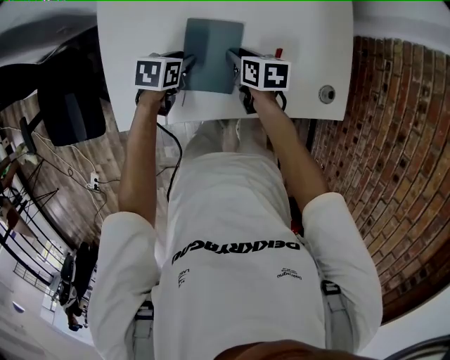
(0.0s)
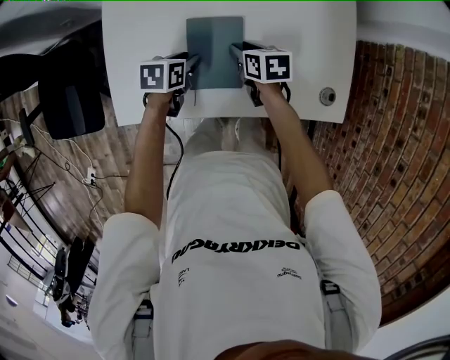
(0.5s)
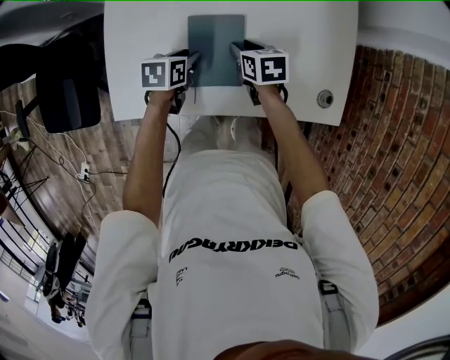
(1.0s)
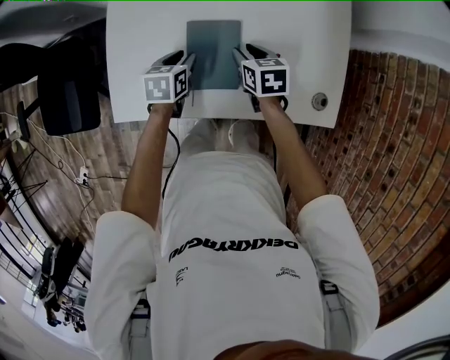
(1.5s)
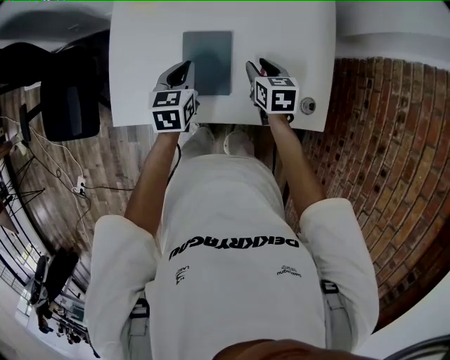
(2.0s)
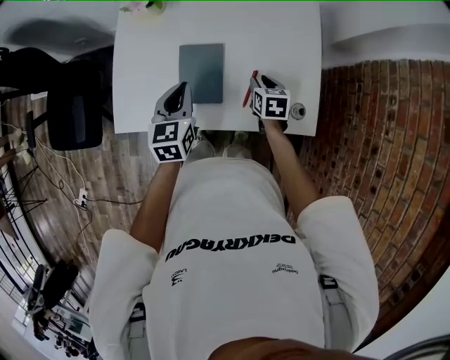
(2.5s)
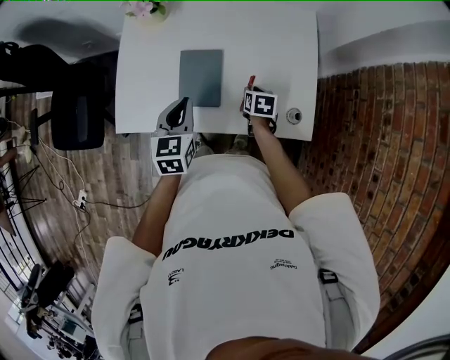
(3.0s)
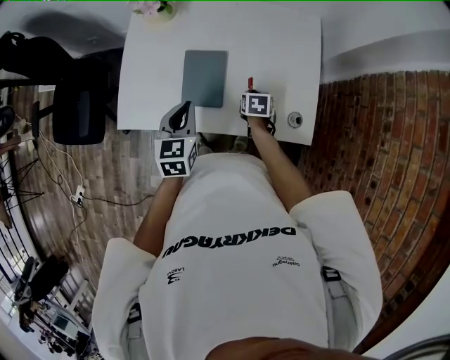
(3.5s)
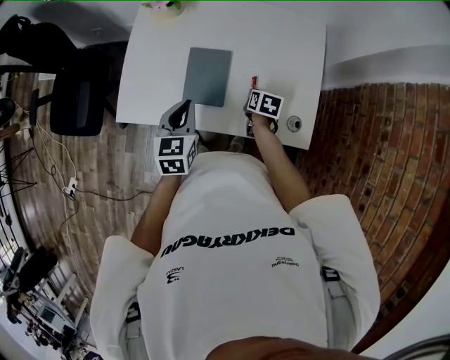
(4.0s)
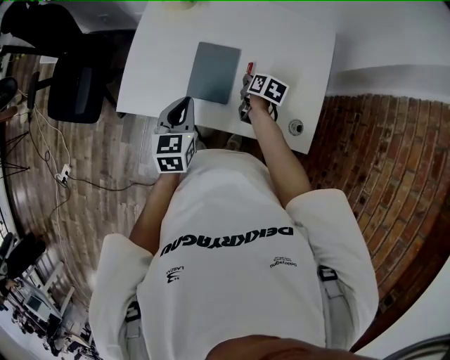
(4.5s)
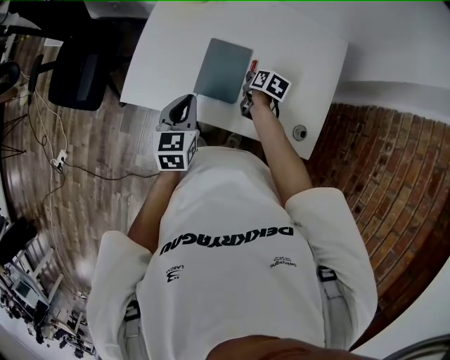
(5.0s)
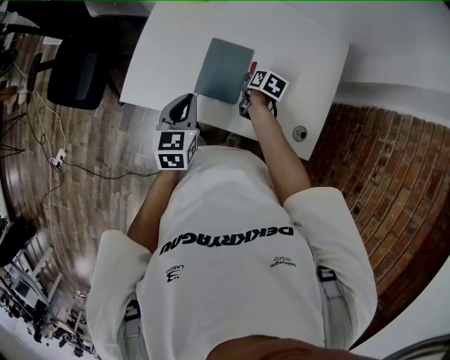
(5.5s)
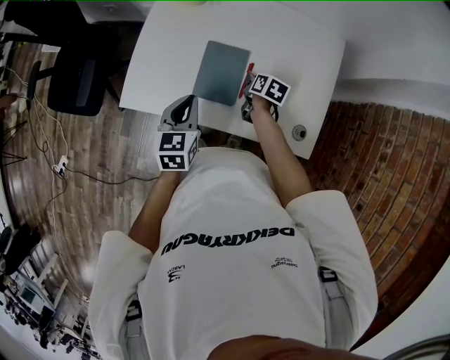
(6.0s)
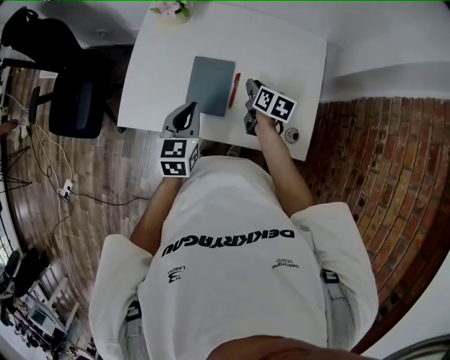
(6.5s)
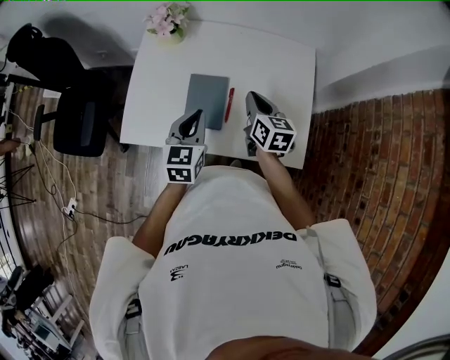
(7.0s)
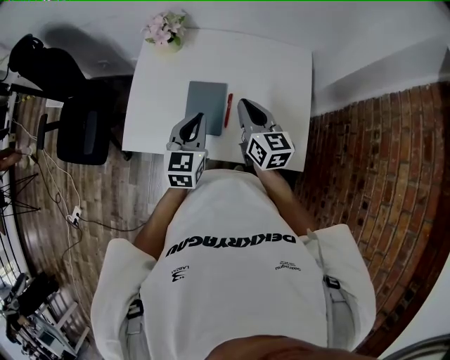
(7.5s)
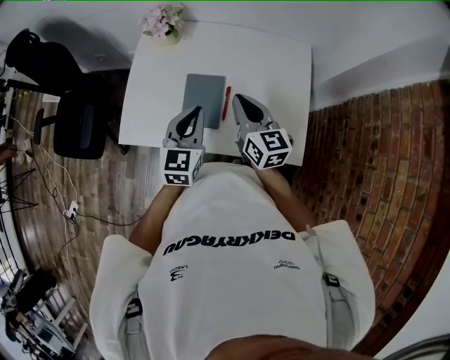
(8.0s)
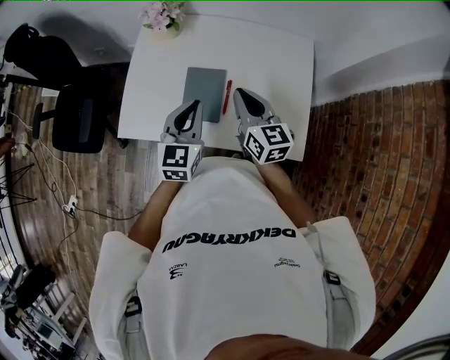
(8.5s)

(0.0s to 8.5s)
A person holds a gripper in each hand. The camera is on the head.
0.0s - 2.0s: The right gripper heads upward and to the right, covering roughly 10 cm, and turns by roughly 20 degrees. The left gripper is displaced upward by approximately 10 cm, changes its angle by roughly 30 degrees, and closes up.
2.0s - 4.0s: The left gripper goes about 15 cm backward and upward. The right gripper is displaced downward by some 5 cm, and closes its fingers.
4.0s - 6.5s: The right gripper is displaced upward and forward by approximately 10 cm.
6.5s - 8.5s: The left gripper moves upward, approximately 5 cm. Meanwhile the right gripper shifts roughly 15 cm upward, and turns by approximately 40 degrees.

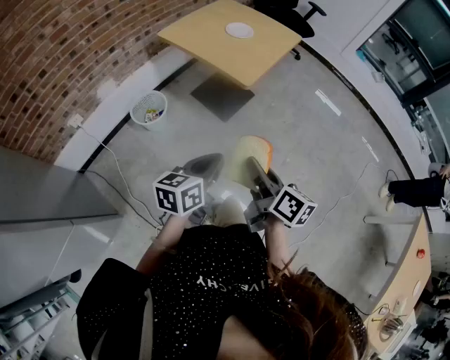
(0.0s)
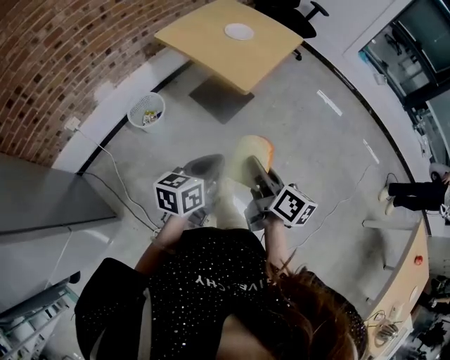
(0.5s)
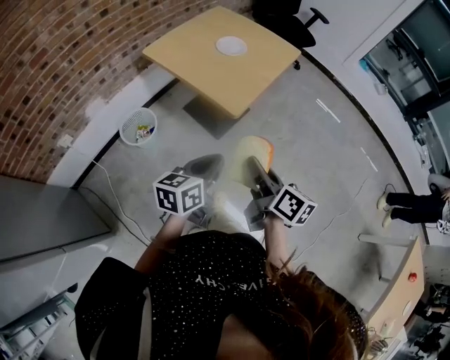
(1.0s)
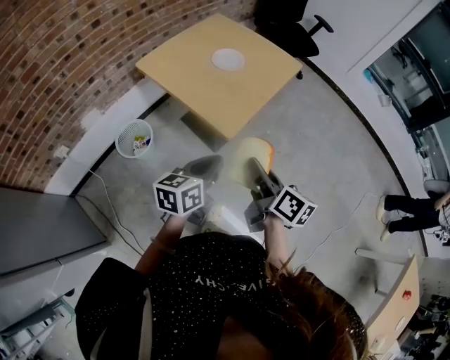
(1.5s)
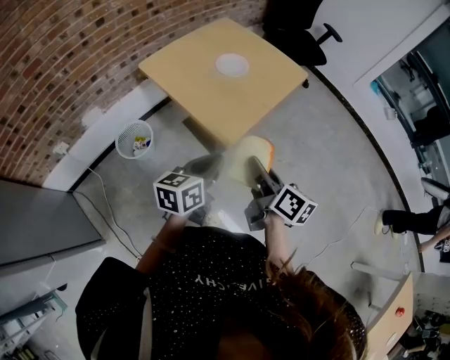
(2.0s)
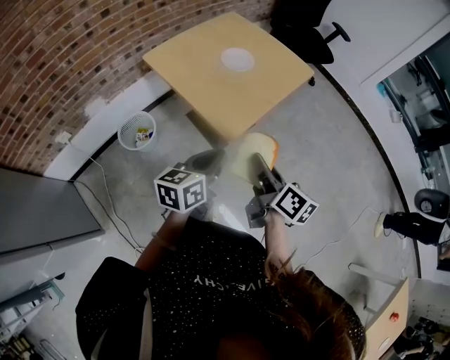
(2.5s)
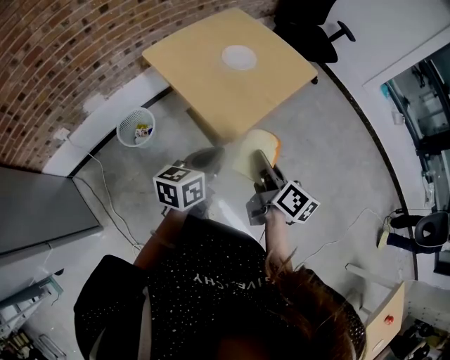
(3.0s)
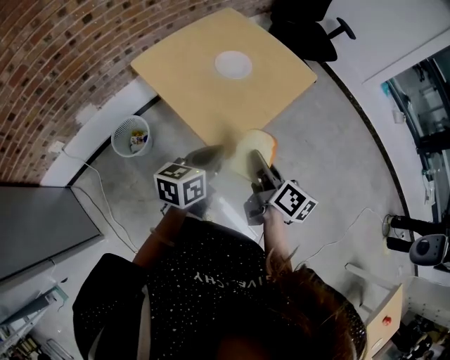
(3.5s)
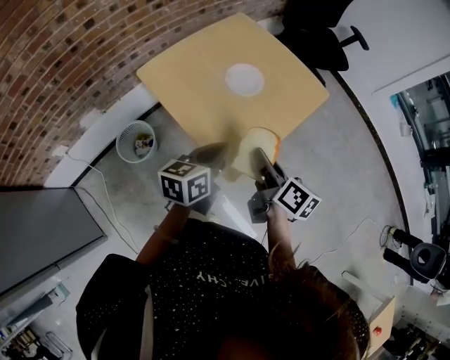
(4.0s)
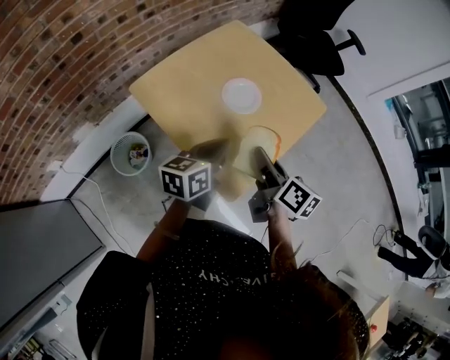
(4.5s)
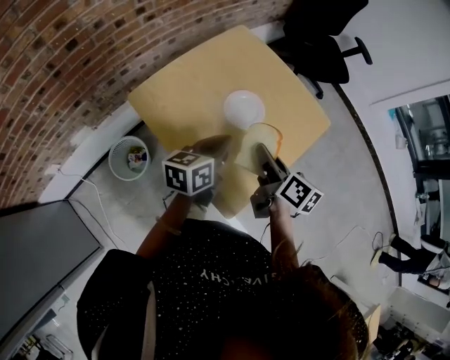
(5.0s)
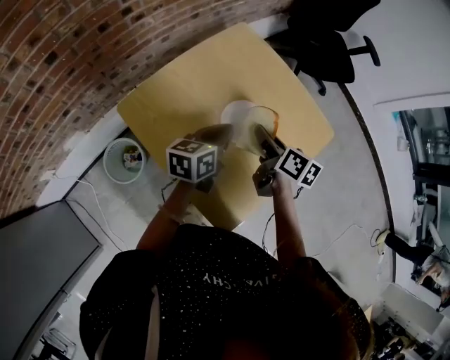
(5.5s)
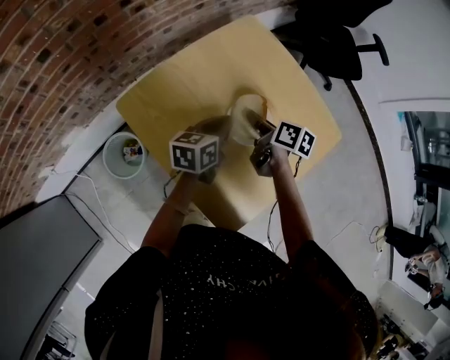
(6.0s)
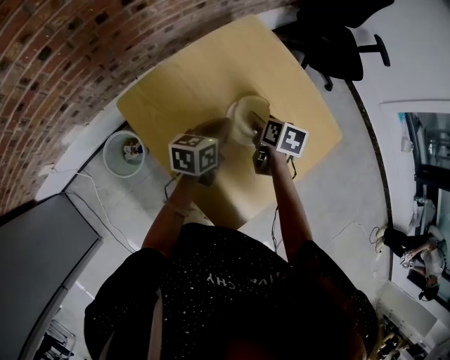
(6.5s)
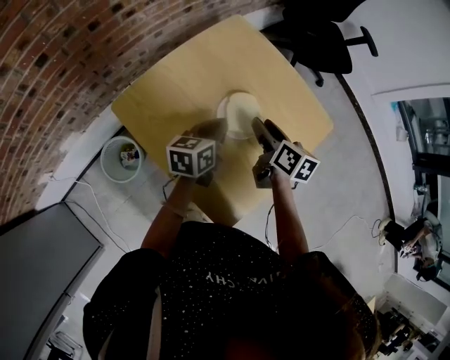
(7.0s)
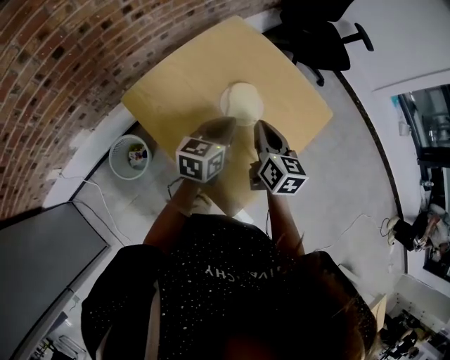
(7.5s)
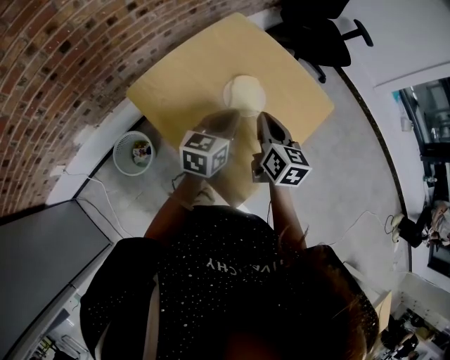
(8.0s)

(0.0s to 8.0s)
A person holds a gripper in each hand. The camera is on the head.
0.0s - 2.0s: The two grippers go some 30 cm forward.
2.0s - 4.0s: Both grippers move forward, approximately 20 cm.
4.0s - 6.0s: The grippers both shift forward by about 30 cm. The right gripper changes its angle by approximately 20 degrees.
6.0s - 8.0s: The grippers both shift backward and upward by about 15 cm. The right gripper swivels approximately 40 degrees, and opens and closes again.

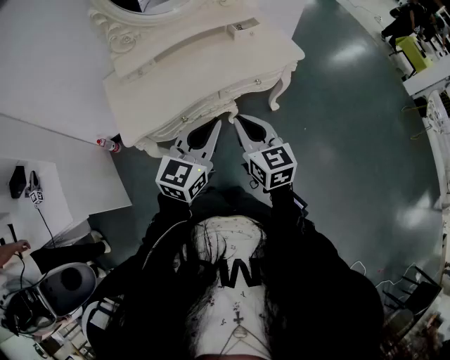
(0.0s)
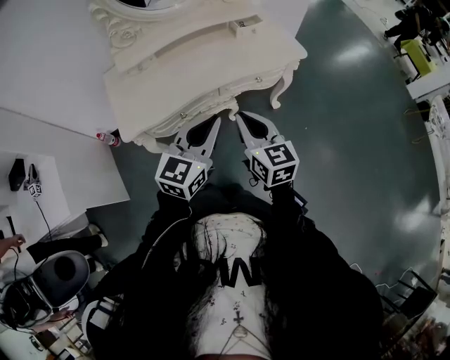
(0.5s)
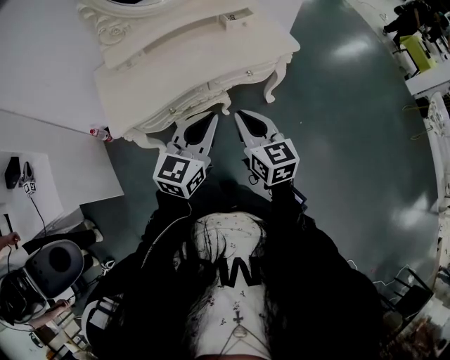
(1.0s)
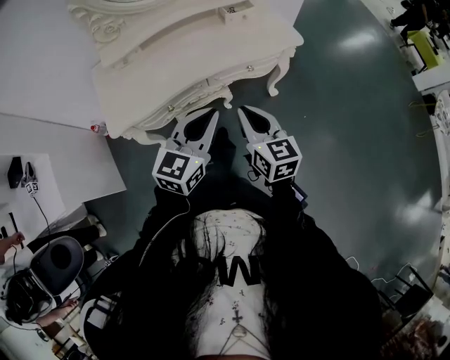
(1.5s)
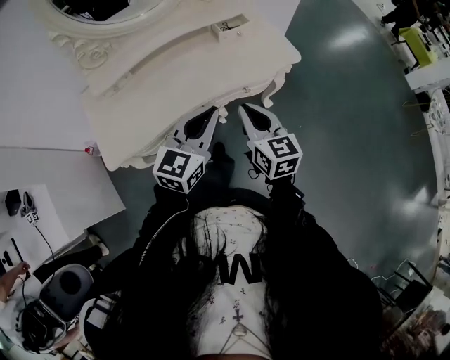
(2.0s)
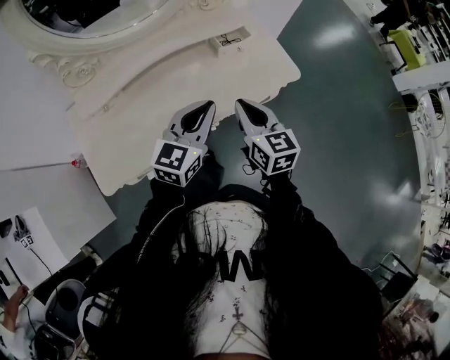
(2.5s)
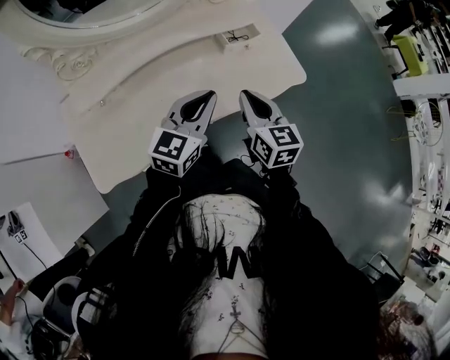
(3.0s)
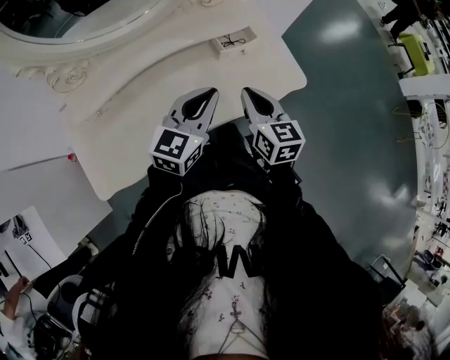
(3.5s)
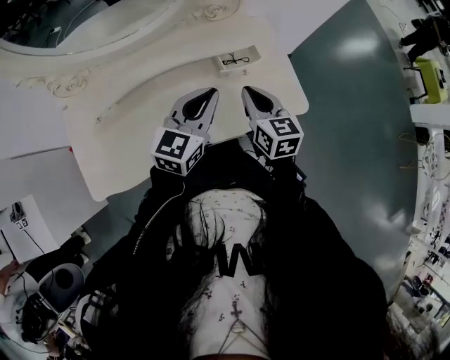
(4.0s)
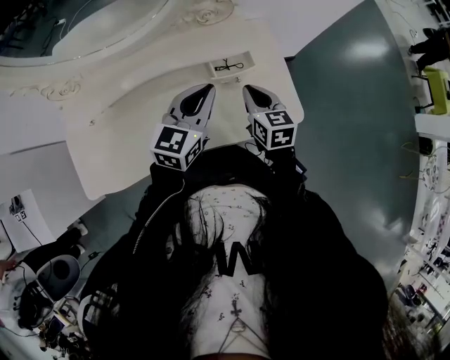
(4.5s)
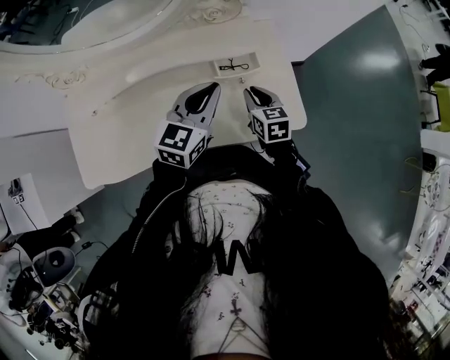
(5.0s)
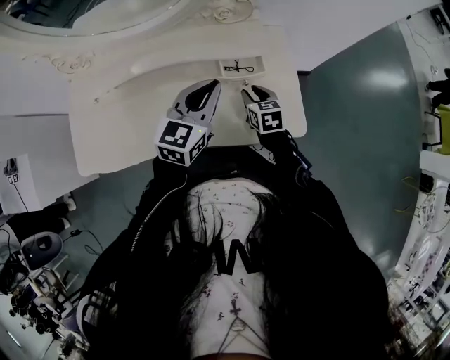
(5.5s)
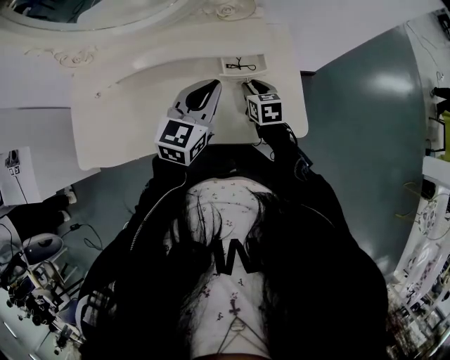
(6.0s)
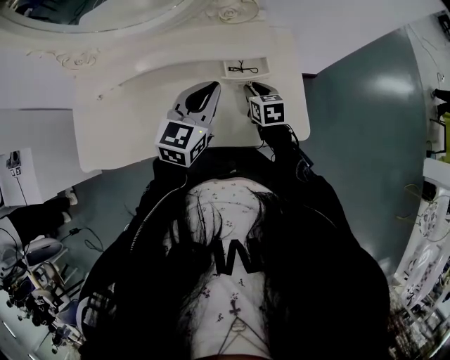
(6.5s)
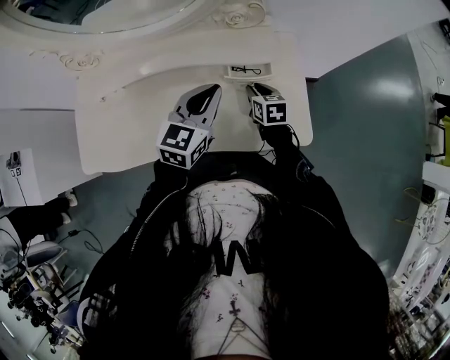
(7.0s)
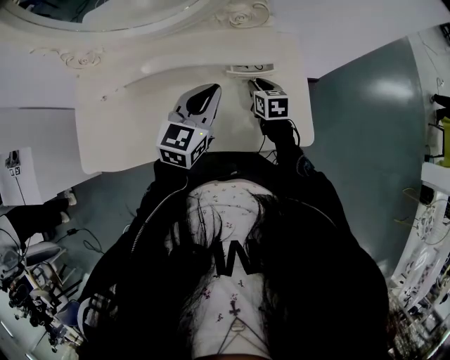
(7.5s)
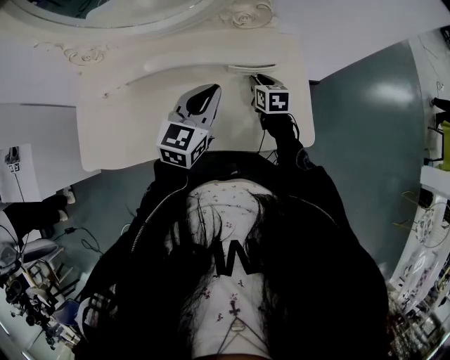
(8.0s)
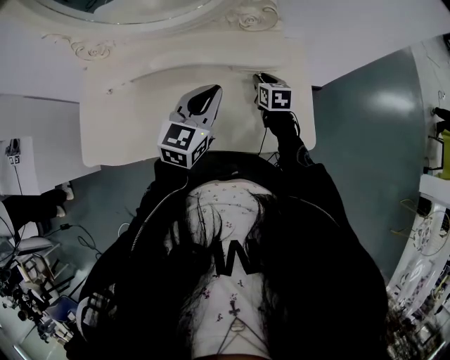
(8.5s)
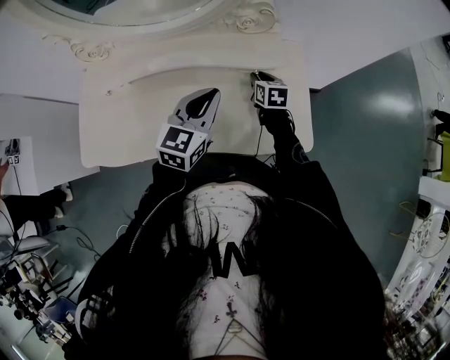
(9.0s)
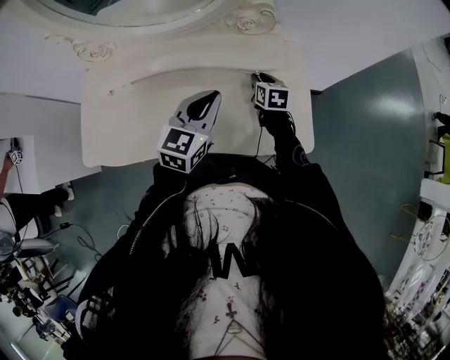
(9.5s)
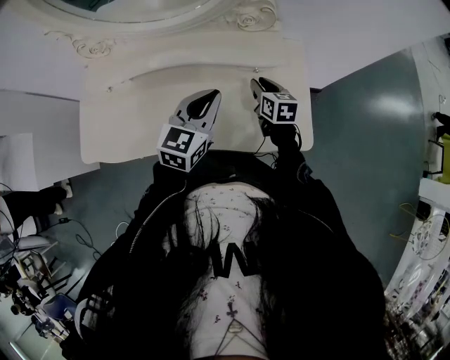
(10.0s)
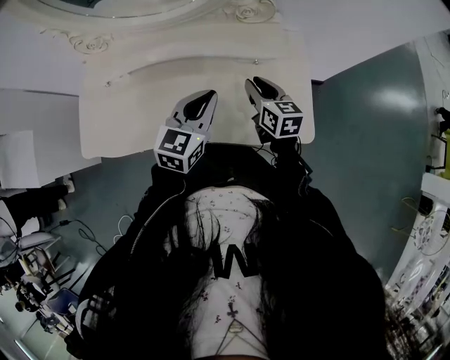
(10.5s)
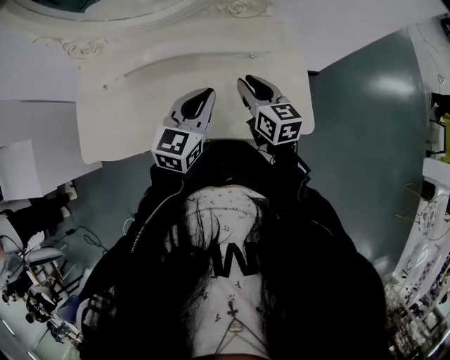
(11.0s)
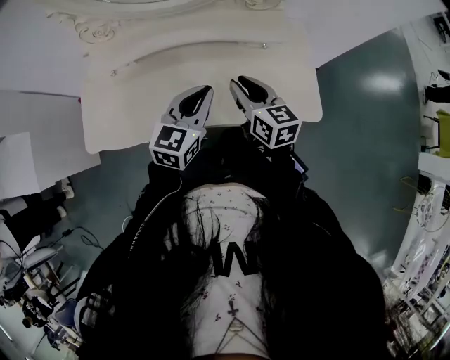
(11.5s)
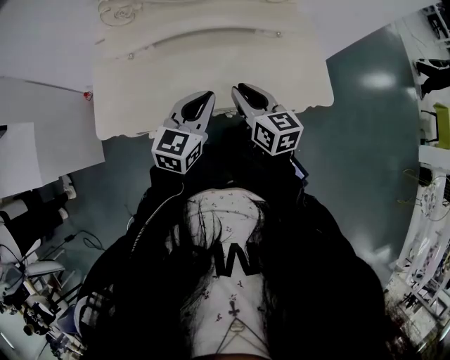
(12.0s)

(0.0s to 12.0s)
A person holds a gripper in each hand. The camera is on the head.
0.0s - 2.0s: The left gripper goes some 15 cm forward; the right gripper is displaced forward and to the right by some 15 cm.
2.0s - 4.0s: Both grippers move forward, about 30 cm.
4.0s - 6.0s: The left gripper changes place by about 5 cm; the right gripper shifts roughly 20 cm downward and forward, changes its angle by about 20 degrees, and opens its fingers.
6.0s - 8.0s: The right gripper goes approximately 5 cm forward.
8.0s - 10.0s: The grippers stay close to where they were, moving slightly.
10.0s - 12.0s: The left gripper shifts approximately 20 cm backward and to the left; the right gripper shifts about 30 cm backward, to the left and upward.
